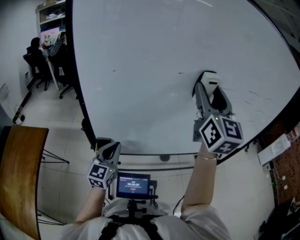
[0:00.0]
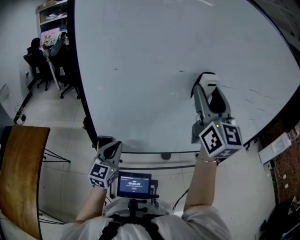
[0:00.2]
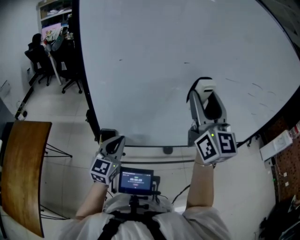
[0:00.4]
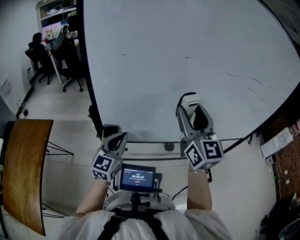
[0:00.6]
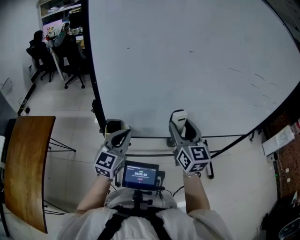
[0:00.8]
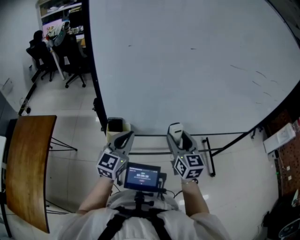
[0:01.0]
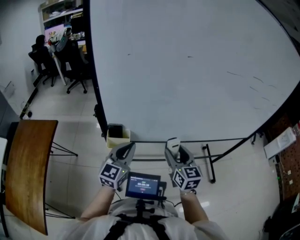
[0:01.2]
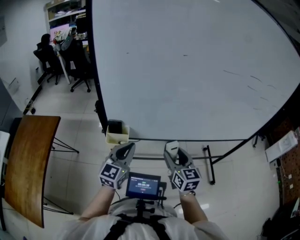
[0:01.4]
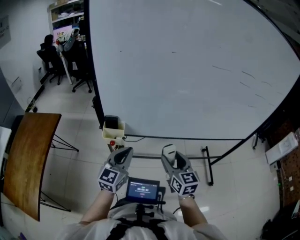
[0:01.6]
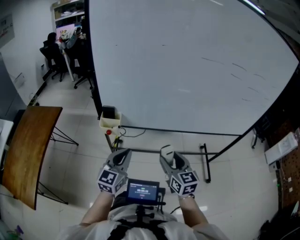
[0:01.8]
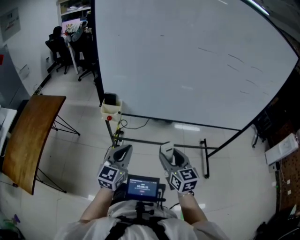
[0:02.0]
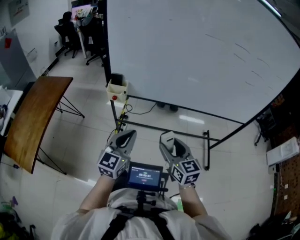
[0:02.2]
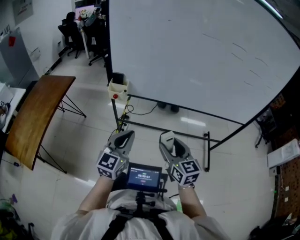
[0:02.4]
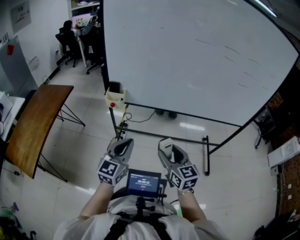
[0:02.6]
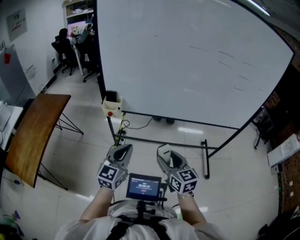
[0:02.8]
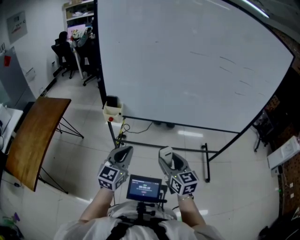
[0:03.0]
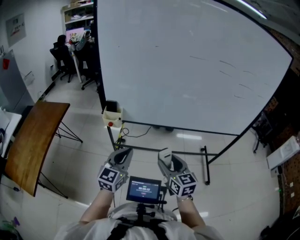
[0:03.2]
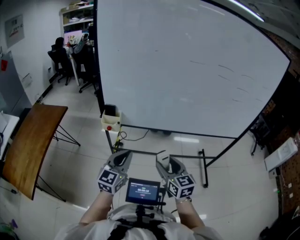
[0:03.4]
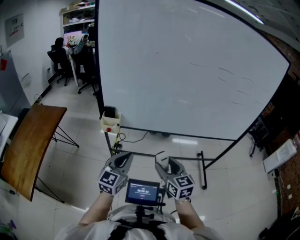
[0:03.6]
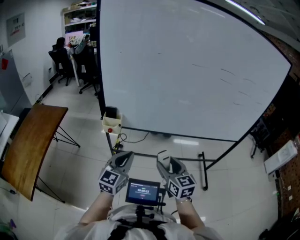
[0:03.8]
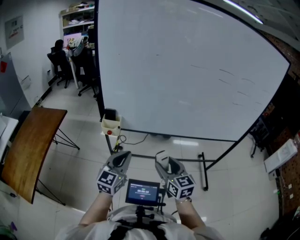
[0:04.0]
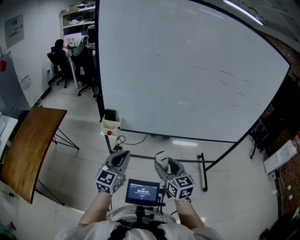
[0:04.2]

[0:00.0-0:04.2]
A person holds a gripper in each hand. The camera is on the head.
0:00.0 to 0:01.4: The left gripper travels backward by about 10 cm; the right gripper goes roughly 35 cm downward, and turns by about 30 degrees.
0:01.4 to 0:02.8: The right gripper travels backward by some 20 cm; the left gripper shifts some 25 cm backward and to the right.
0:02.8 to 0:04.2: Both grippers move forward, roughly 5 cm.

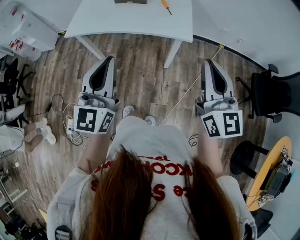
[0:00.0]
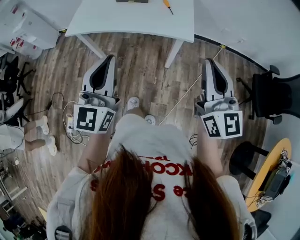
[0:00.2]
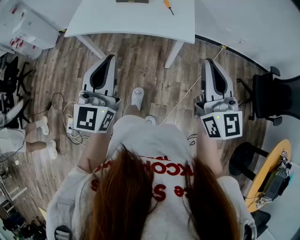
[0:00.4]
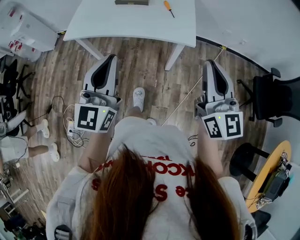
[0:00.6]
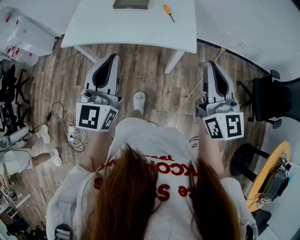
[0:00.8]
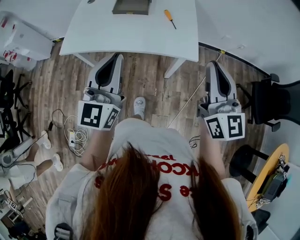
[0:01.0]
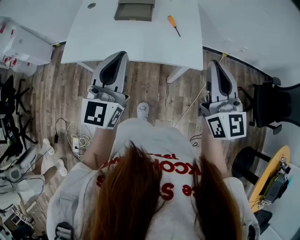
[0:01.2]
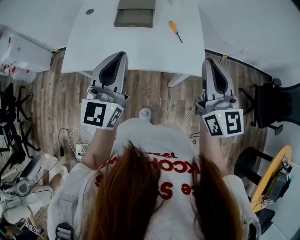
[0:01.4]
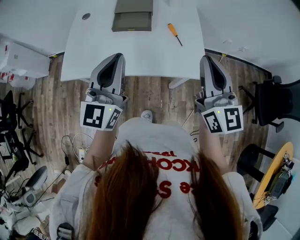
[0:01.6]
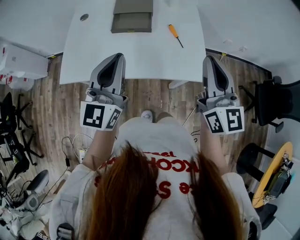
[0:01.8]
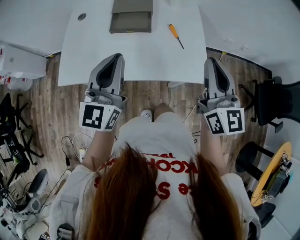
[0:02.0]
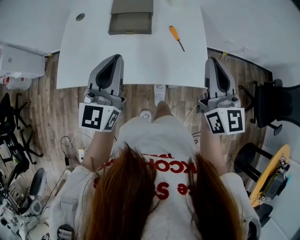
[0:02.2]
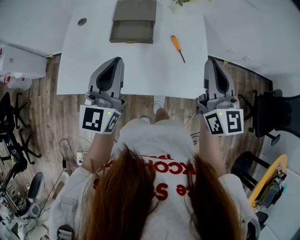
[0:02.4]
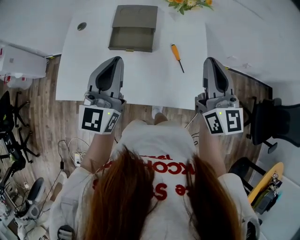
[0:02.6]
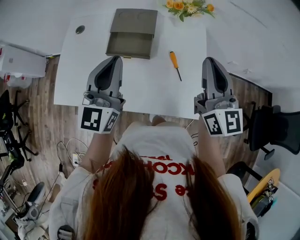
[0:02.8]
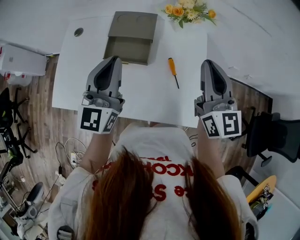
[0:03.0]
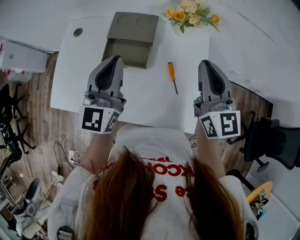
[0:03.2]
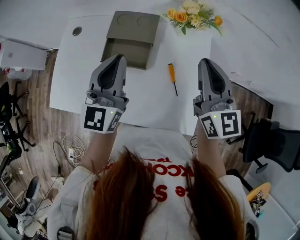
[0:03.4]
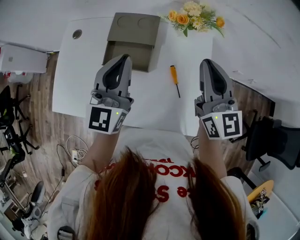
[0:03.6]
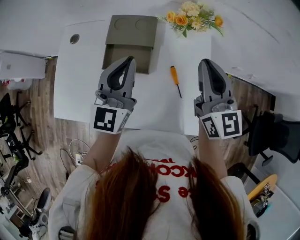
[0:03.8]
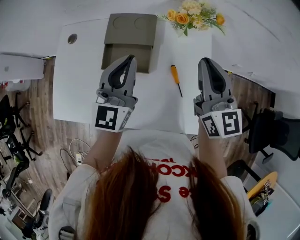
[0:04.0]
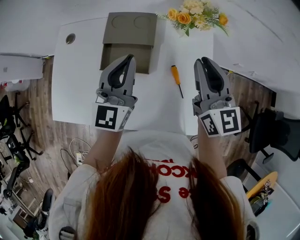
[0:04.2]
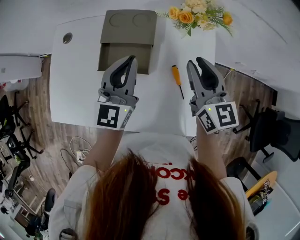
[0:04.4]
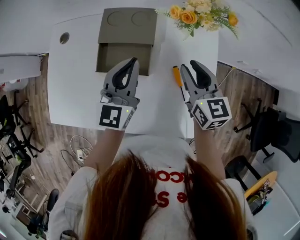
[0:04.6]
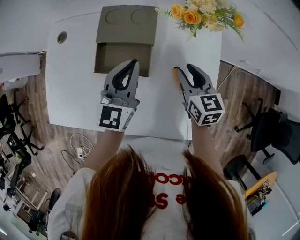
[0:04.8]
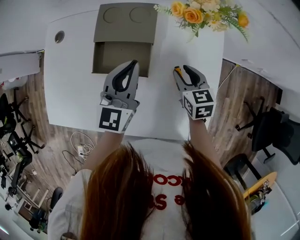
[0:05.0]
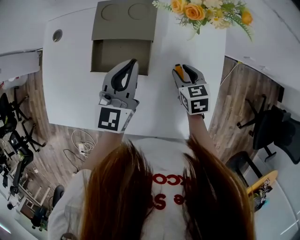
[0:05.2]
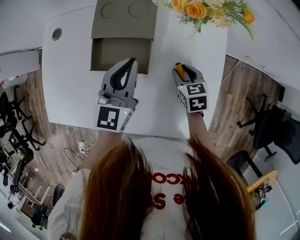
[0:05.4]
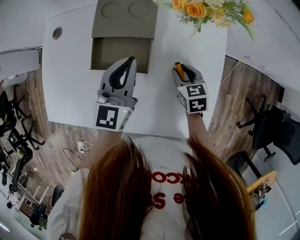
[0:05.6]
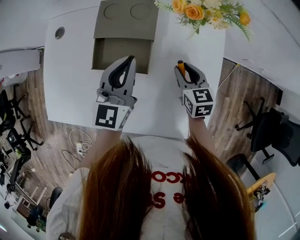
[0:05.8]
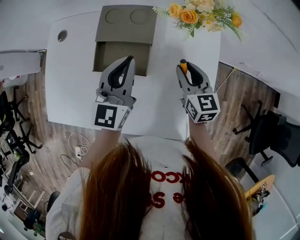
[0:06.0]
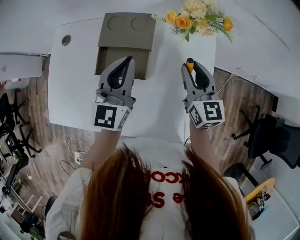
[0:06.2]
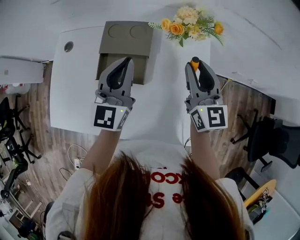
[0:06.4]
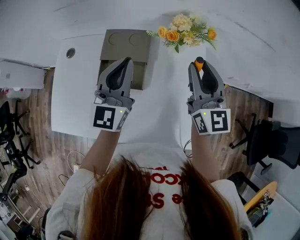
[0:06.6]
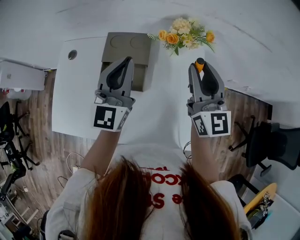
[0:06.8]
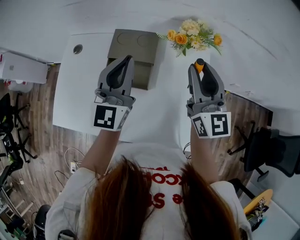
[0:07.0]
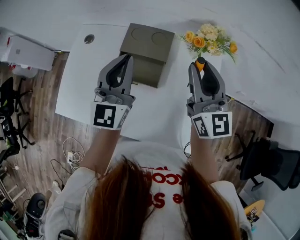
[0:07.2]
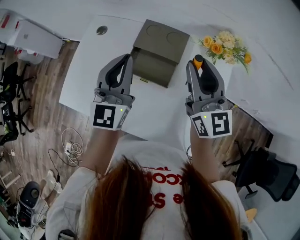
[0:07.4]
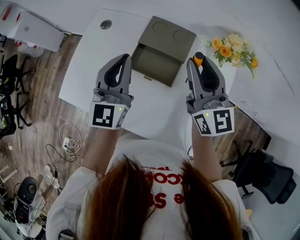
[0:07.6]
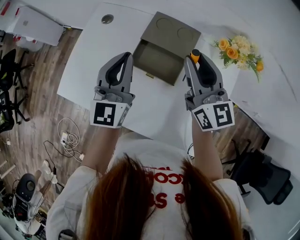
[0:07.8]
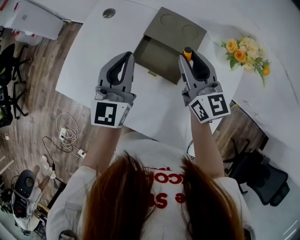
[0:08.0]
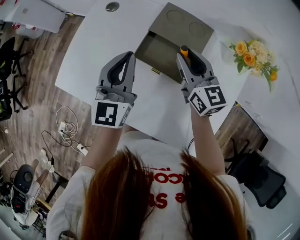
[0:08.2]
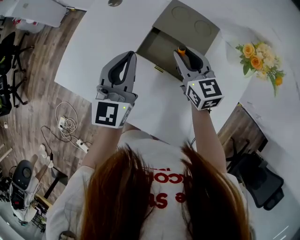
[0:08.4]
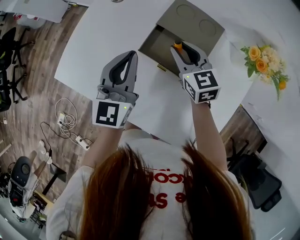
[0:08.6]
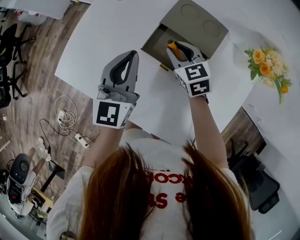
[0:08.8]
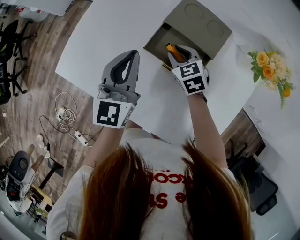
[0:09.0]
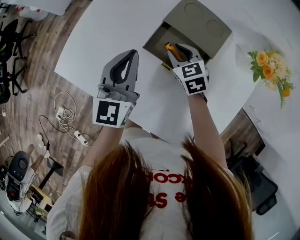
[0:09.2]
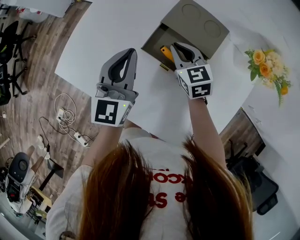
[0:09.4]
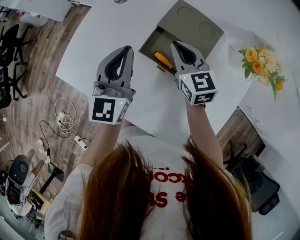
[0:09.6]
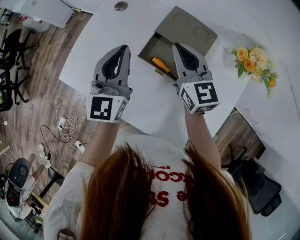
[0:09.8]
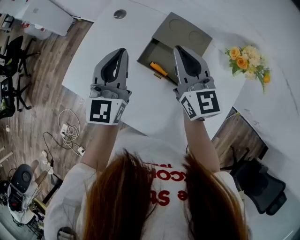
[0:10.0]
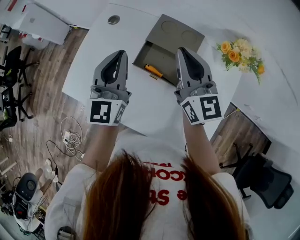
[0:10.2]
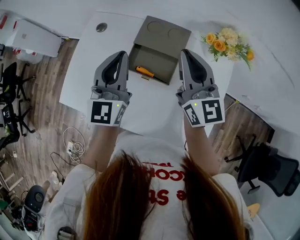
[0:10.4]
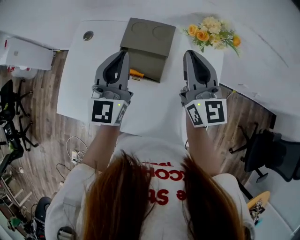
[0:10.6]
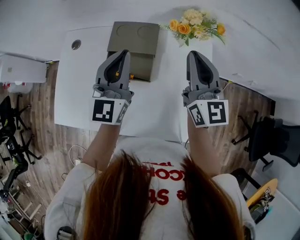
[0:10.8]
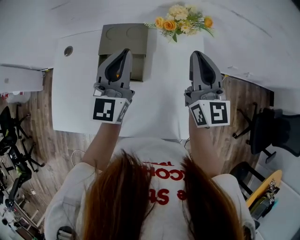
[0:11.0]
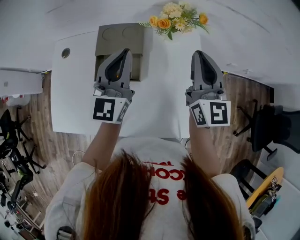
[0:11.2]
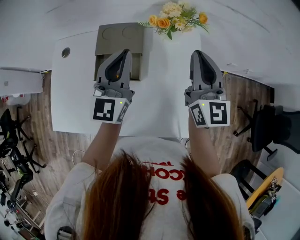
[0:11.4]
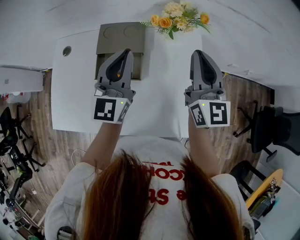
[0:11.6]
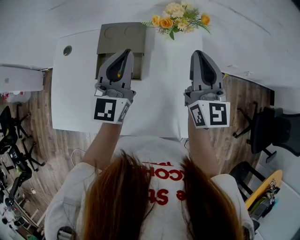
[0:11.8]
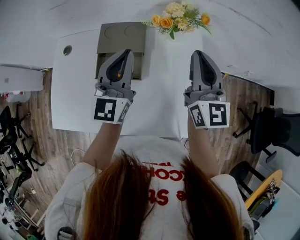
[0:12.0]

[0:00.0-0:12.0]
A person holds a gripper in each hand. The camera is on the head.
0:00.0 to 0:01.6: Both grippers travel together forward, roughly 25 cm.
0:01.6 to 0:03.0: The two grippers go some 20 cm forward.
0:03.0 to 0:04.4: The right gripper travels downward and forward by roughly 15 cm, and opens its fingers. The left gripper goes roughly 10 cm forward and downward.
0:04.4 to 0:06.0: The right gripper moves downward, about 15 cm.
0:06.0 to 0:07.6: The left gripper goes about 15 cm to the left and upward, and rotates some 20 degrees. The right gripper goes some 25 cm upward and to the left, and swivels about 30 degrees.
0:07.6 to 0:09.0: The left gripper heads downward, covering approximately 10 cm; the right gripper travels downward by some 30 cm, and tilts its fingers approximately 50 degrees downward.
0:09.0 to 0:10.4: The right gripper travels upward by some 30 cm, angles its fingers upward, by some 50 degrees, and closes its fingers, while the left gripper goes approximately 10 cm upward and to the right.
0:10.4 to 0:12.0: Both grippers move to the right, about 15 cm. The right gripper changes its angle by roughly 30 degrees.

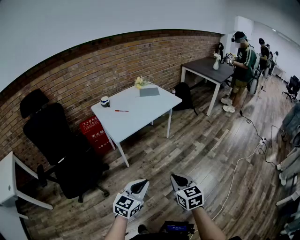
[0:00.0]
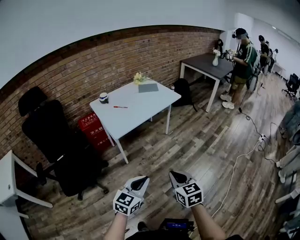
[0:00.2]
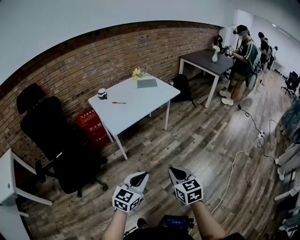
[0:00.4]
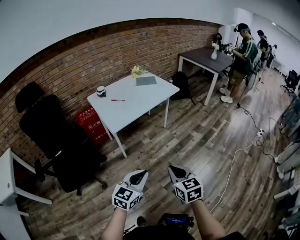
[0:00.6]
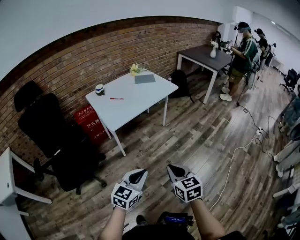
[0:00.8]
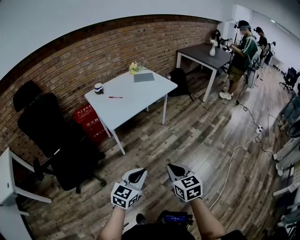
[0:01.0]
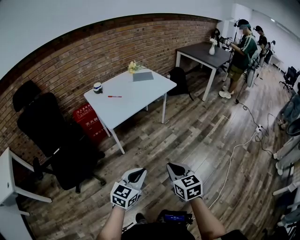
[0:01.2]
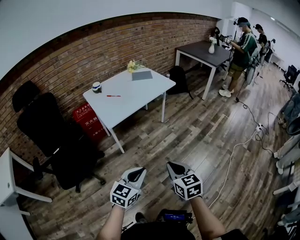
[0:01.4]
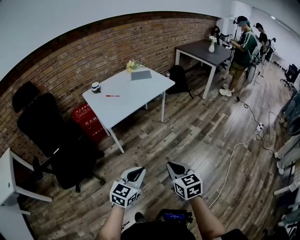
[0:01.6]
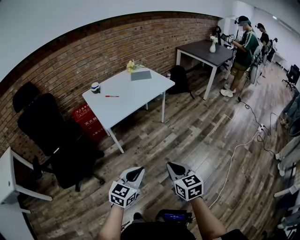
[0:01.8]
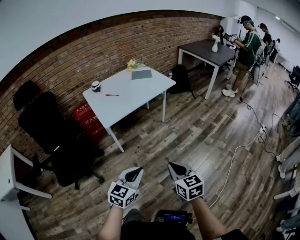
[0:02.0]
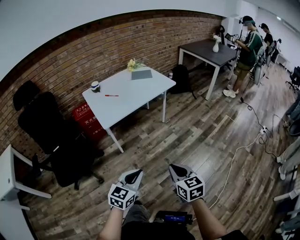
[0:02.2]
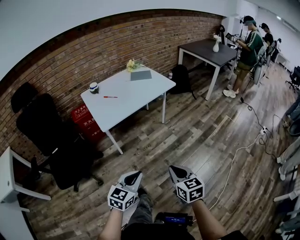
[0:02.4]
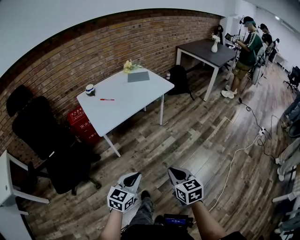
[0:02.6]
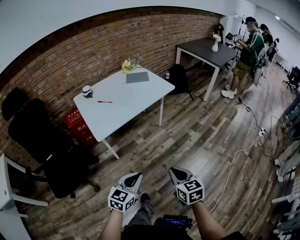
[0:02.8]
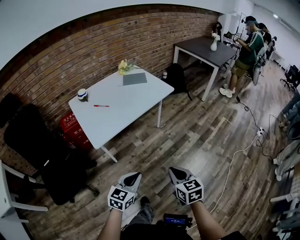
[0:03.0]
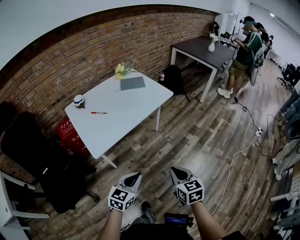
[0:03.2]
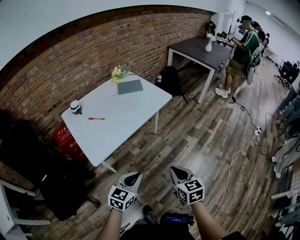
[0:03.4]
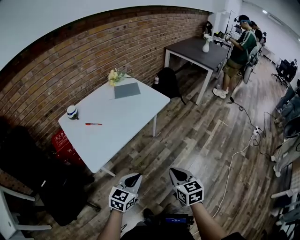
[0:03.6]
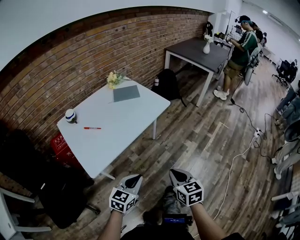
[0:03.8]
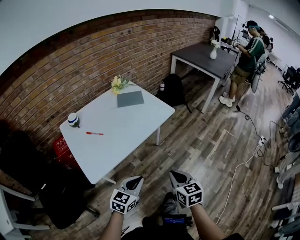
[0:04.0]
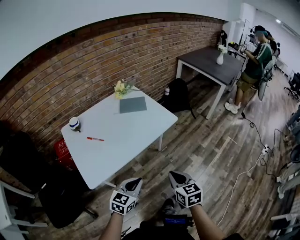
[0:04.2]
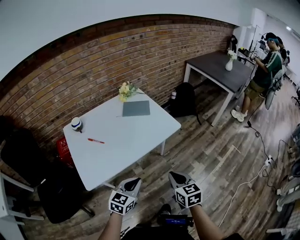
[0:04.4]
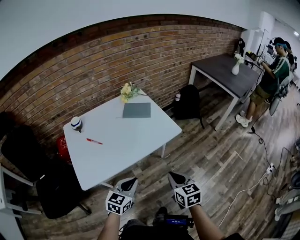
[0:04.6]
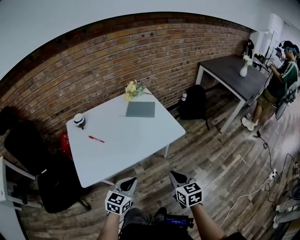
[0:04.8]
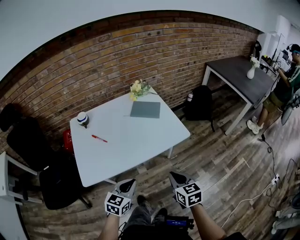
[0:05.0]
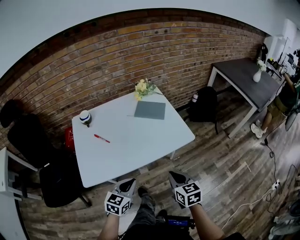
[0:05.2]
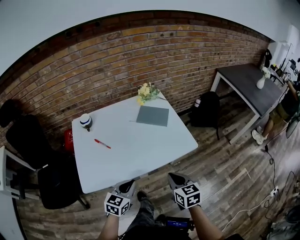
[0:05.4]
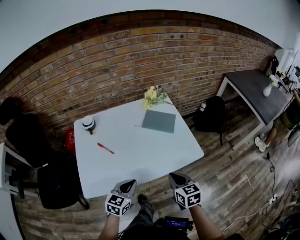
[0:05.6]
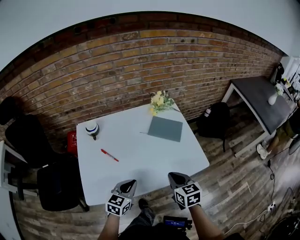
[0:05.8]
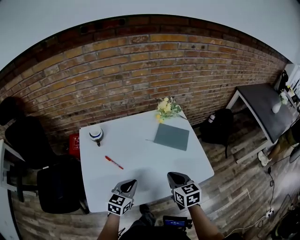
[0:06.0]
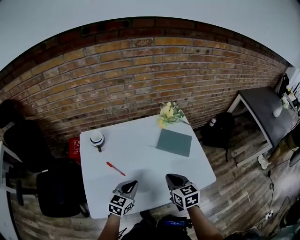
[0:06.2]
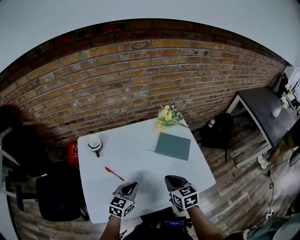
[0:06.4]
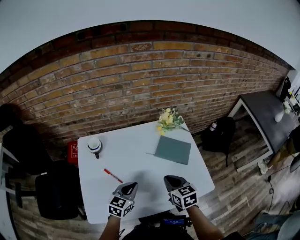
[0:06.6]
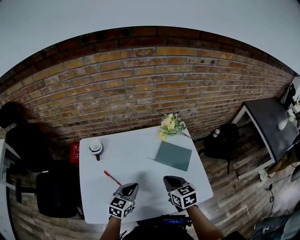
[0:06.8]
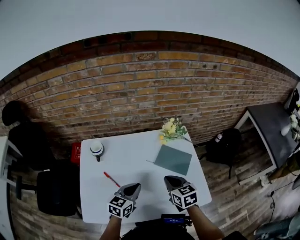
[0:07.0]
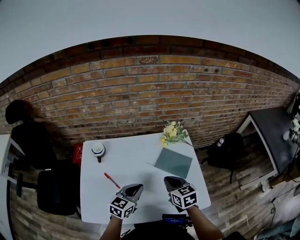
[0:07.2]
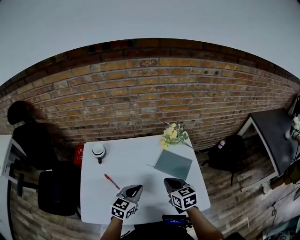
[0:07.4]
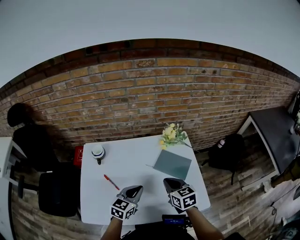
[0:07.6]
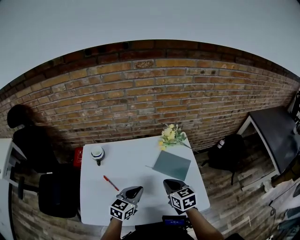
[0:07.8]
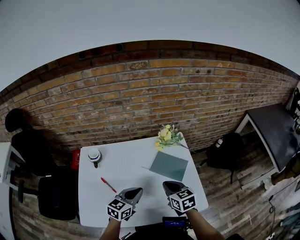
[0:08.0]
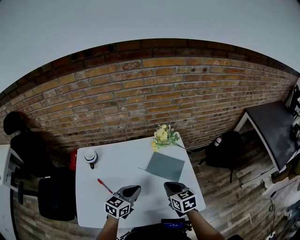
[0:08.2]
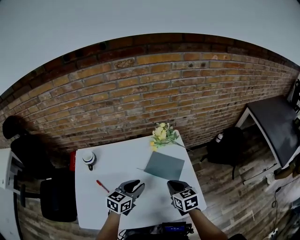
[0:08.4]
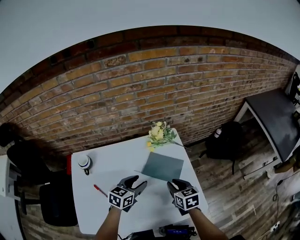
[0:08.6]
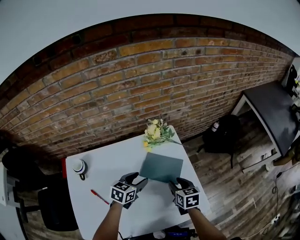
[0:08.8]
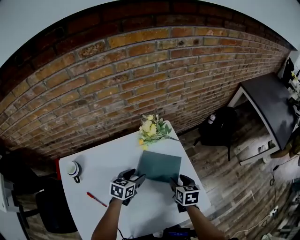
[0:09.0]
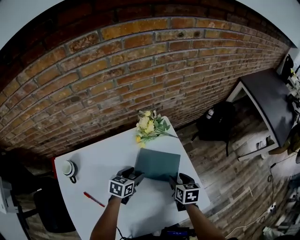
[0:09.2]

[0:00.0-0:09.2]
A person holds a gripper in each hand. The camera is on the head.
0:00.0 to 0:01.6: The grippers move only a little.
0:01.6 to 0:03.0: The grippers both shift forward by some 20 cm.
0:03.0 to 0:04.6: The grippers both shift forward by some 35 cm.
0:04.6 to 0:06.2: The grippers both shift forward and to the left by some 35 cm.
0:06.2 to 0:07.6: The left gripper goes roughly 10 cm to the right and forward, while the right gripper shifts approximately 10 cm forward.
0:07.6 to 0:09.2: The right gripper is displaced downward, to the right and forward by roughly 20 cm, changes its angle by approximately 40 degrees, and opens its fingers, while the left gripper moves forward and downward, approximately 25 cm, rotates about 30 degrees, and opens.
